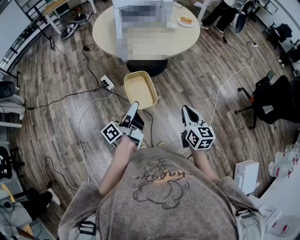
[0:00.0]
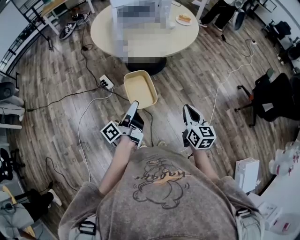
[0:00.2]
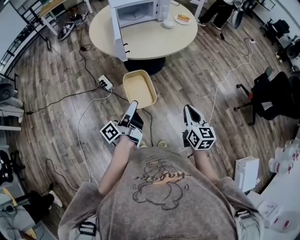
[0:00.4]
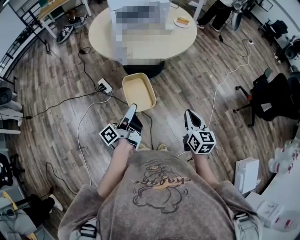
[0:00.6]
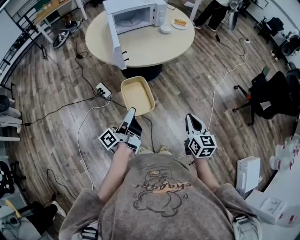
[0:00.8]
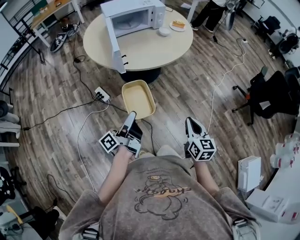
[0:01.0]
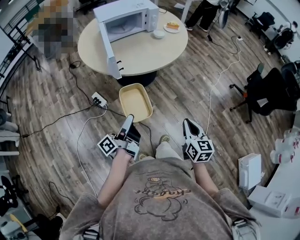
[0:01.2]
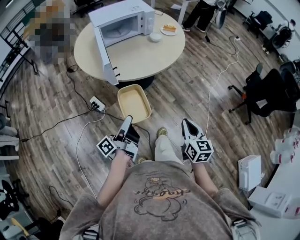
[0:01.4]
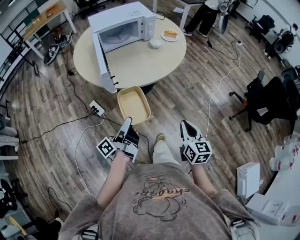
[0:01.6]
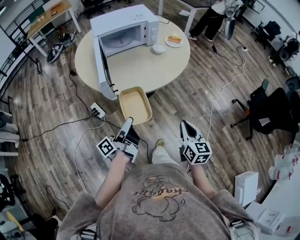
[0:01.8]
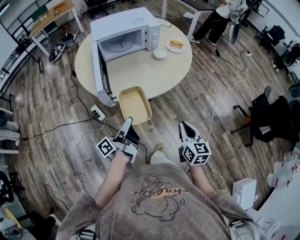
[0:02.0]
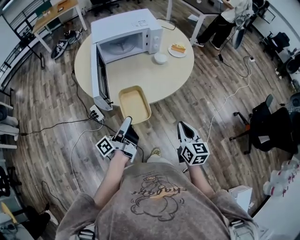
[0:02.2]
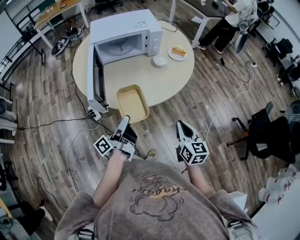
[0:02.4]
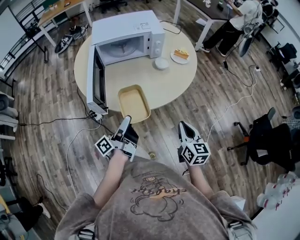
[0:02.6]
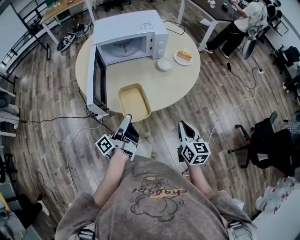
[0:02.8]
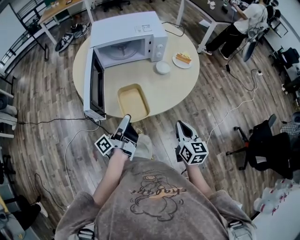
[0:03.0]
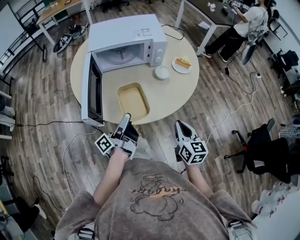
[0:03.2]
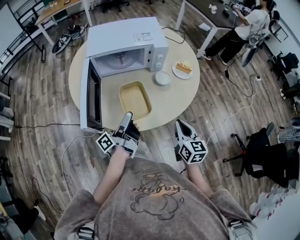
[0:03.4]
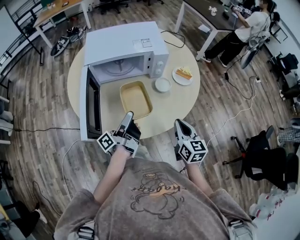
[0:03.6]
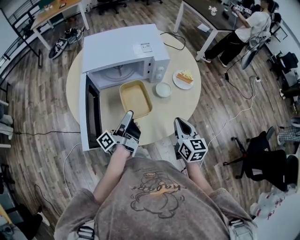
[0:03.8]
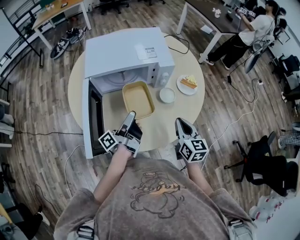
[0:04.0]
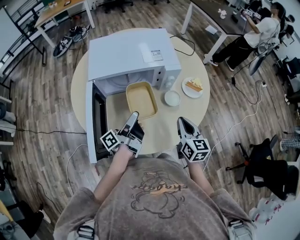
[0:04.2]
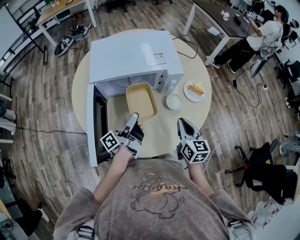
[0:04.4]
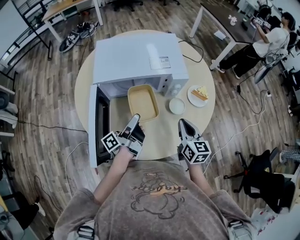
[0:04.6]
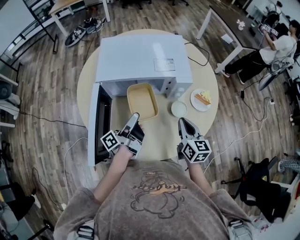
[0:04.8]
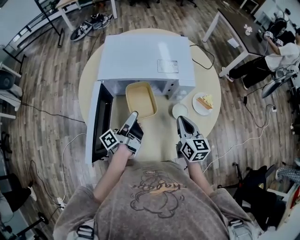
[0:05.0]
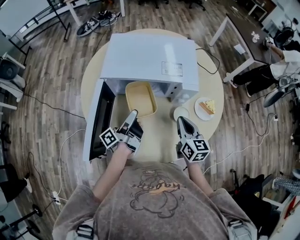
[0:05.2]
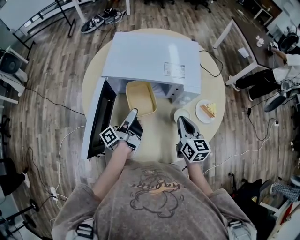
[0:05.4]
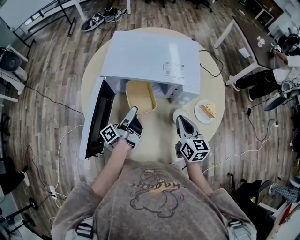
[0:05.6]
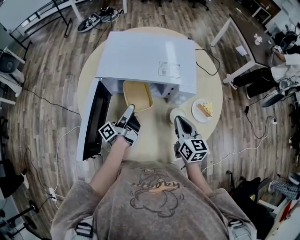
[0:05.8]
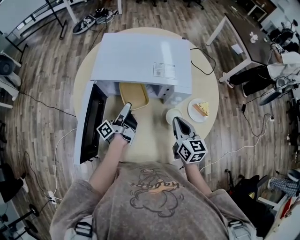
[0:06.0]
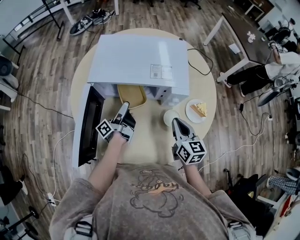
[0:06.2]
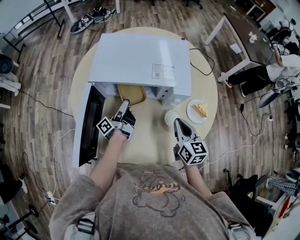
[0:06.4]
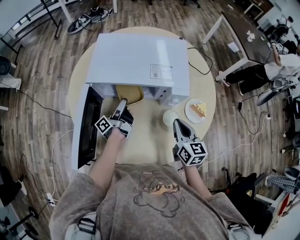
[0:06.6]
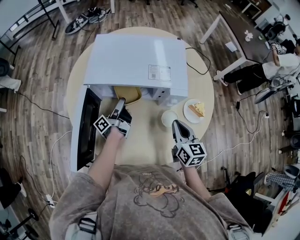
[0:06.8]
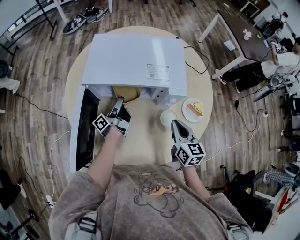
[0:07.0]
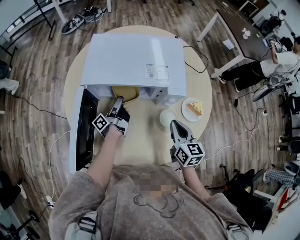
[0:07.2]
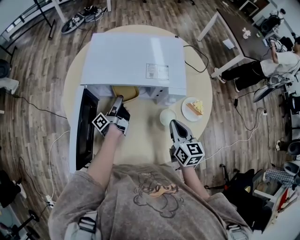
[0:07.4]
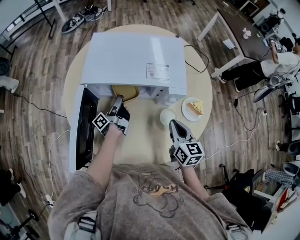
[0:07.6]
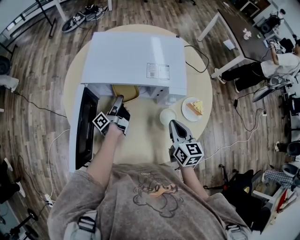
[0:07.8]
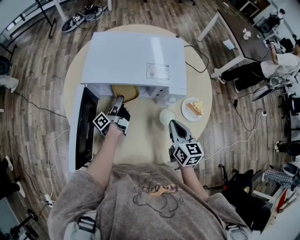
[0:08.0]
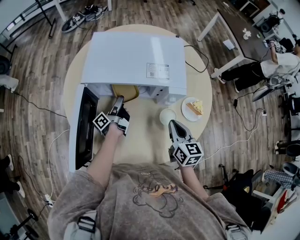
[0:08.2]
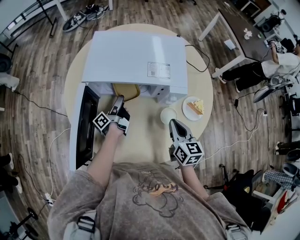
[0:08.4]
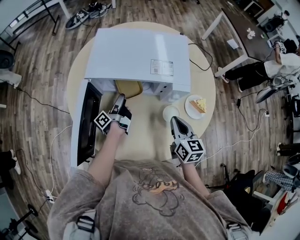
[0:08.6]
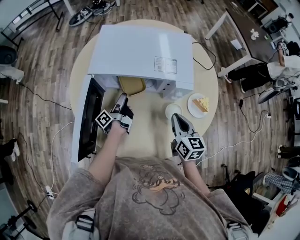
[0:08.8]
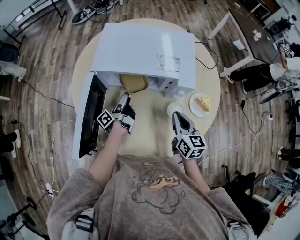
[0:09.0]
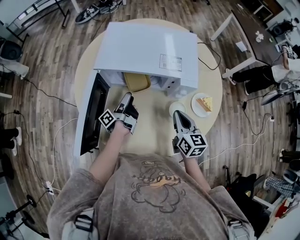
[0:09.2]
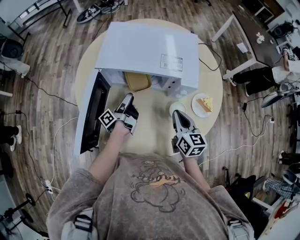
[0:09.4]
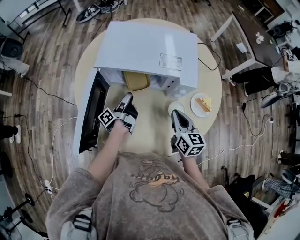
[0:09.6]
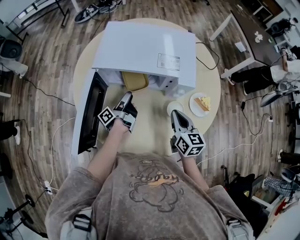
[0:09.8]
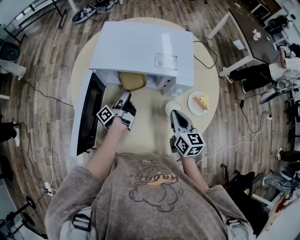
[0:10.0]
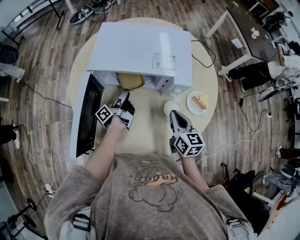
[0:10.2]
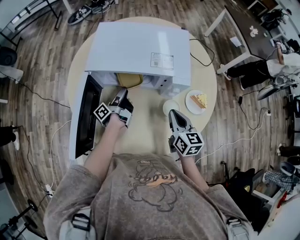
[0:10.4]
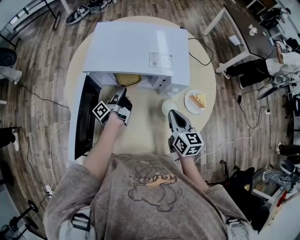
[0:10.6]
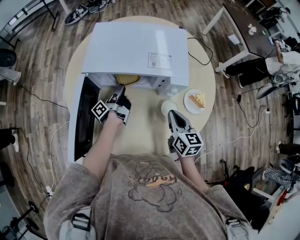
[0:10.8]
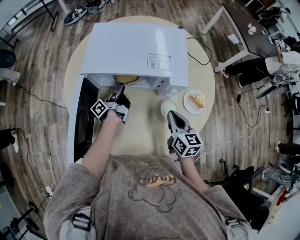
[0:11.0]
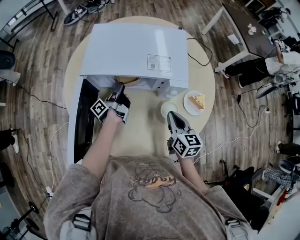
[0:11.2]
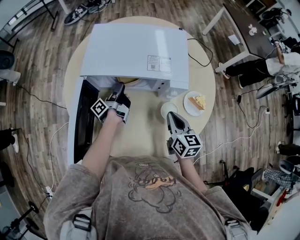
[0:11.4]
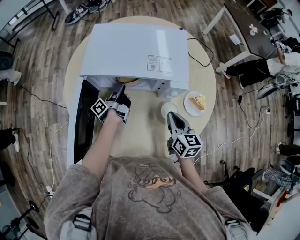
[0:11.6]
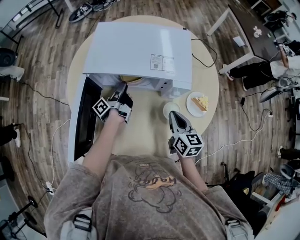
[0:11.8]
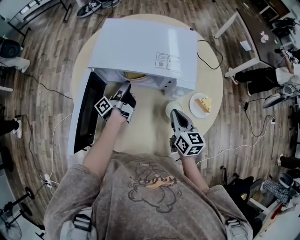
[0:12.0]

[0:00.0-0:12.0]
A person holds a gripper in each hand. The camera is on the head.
0:00.0 to 0:01.6: The right gripper ends up some 10 cm from where it was.
0:01.6 to 0:03.0: The right gripper moves approximately 25 cm.
0:03.0 to 0:04.4: The right gripper changes place by about 25 cm.
0:04.4 to 0:06.0: The right gripper shifts by about 10 cm.

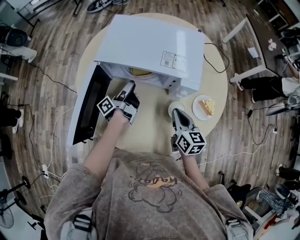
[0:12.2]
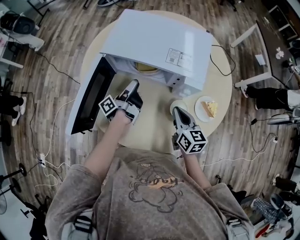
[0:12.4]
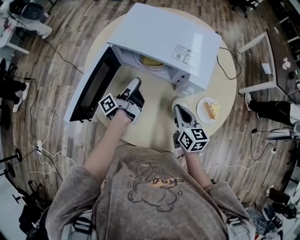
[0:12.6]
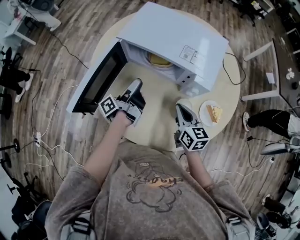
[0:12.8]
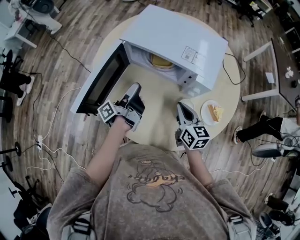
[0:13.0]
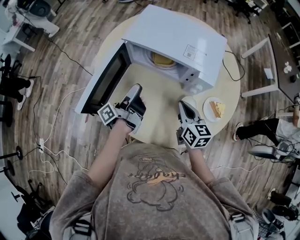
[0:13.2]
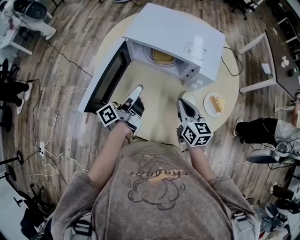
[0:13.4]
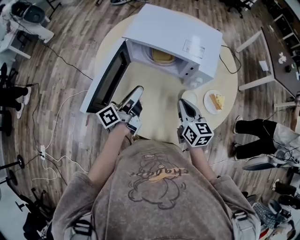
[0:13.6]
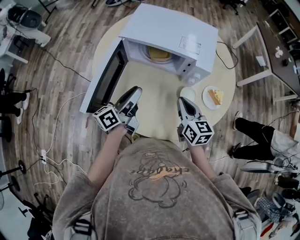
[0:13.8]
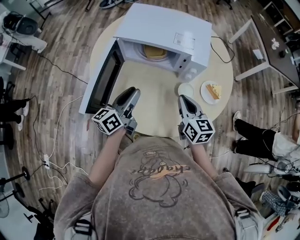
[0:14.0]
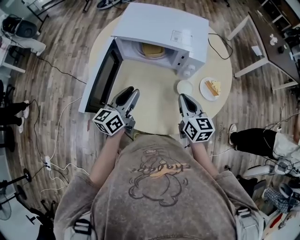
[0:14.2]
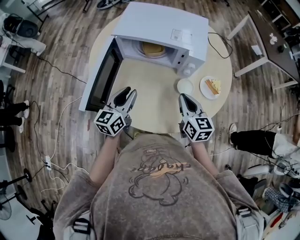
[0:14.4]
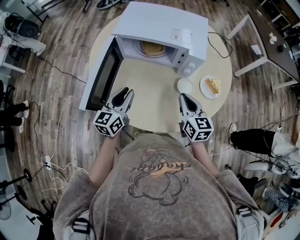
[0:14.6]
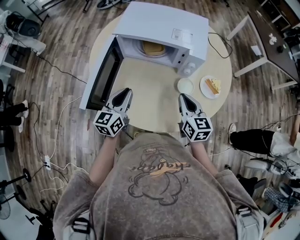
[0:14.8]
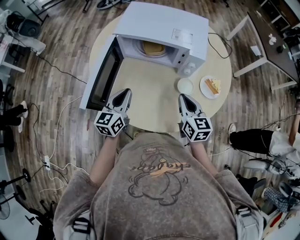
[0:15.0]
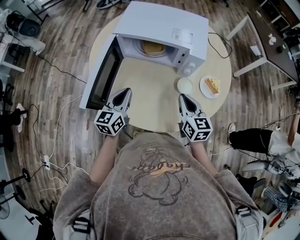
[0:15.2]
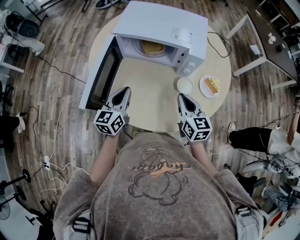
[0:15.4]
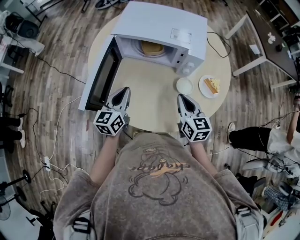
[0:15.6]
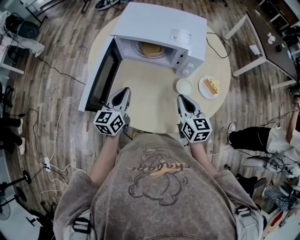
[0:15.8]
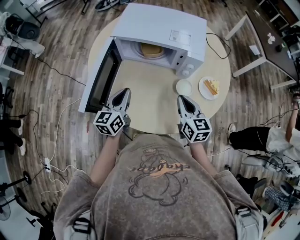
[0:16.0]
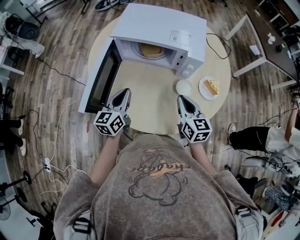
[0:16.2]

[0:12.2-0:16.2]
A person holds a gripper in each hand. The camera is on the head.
0:12.2 to 0:13.6: The right gripper changes place by about 5 cm.

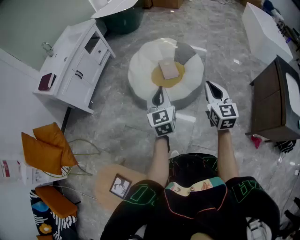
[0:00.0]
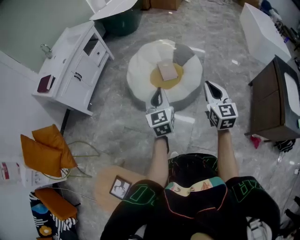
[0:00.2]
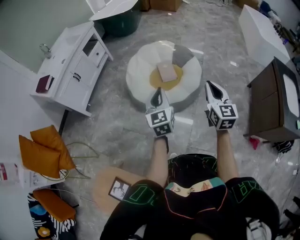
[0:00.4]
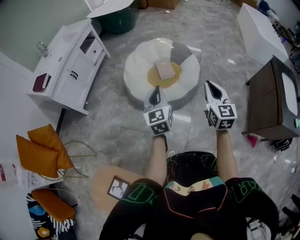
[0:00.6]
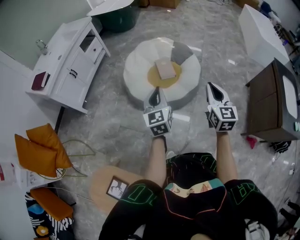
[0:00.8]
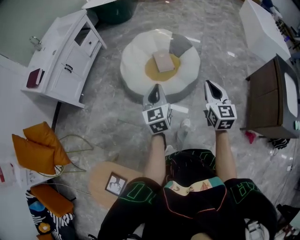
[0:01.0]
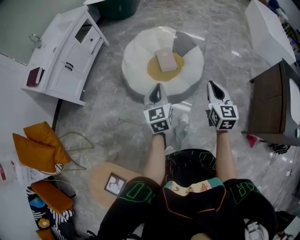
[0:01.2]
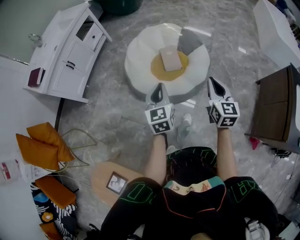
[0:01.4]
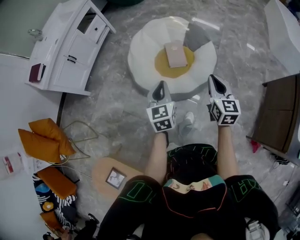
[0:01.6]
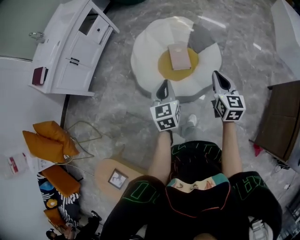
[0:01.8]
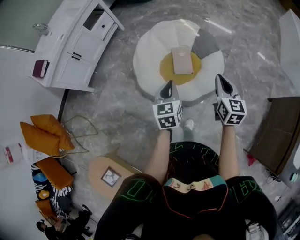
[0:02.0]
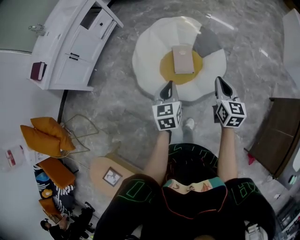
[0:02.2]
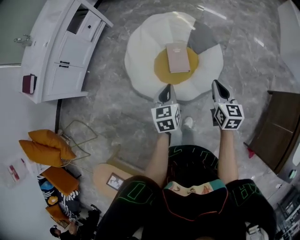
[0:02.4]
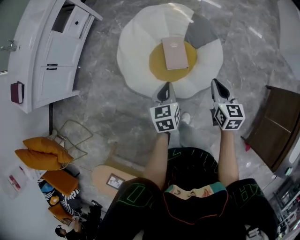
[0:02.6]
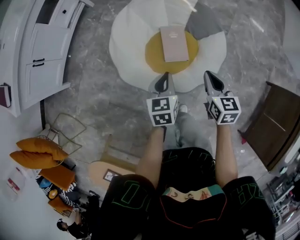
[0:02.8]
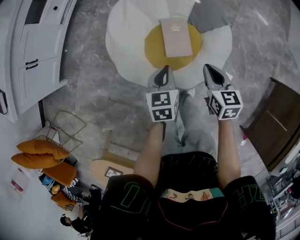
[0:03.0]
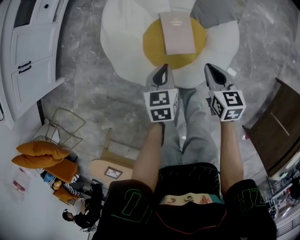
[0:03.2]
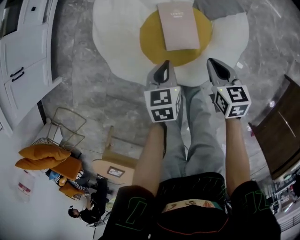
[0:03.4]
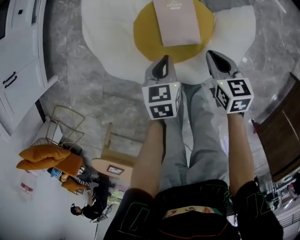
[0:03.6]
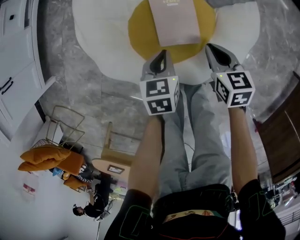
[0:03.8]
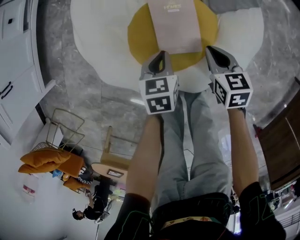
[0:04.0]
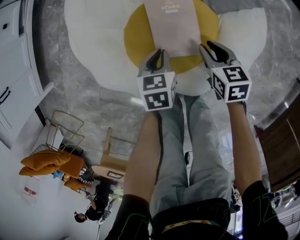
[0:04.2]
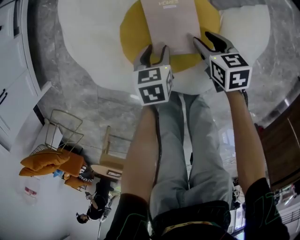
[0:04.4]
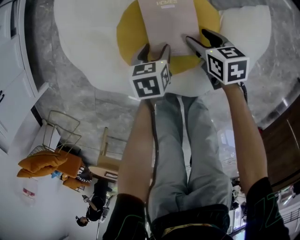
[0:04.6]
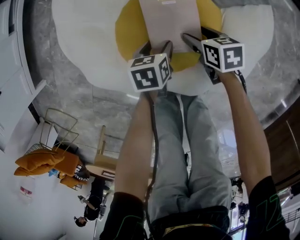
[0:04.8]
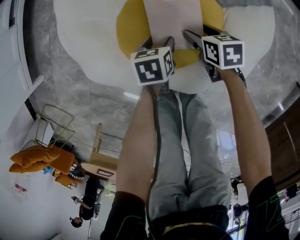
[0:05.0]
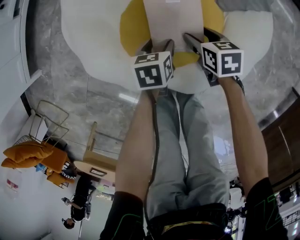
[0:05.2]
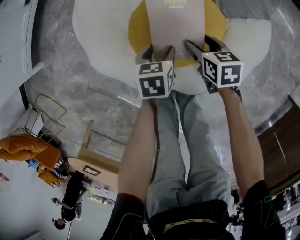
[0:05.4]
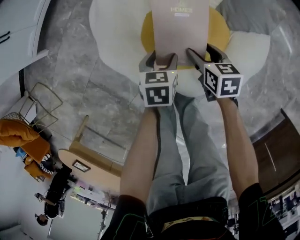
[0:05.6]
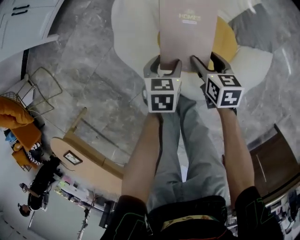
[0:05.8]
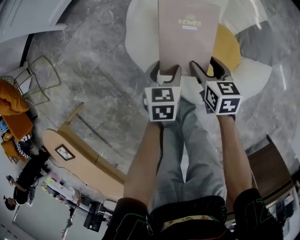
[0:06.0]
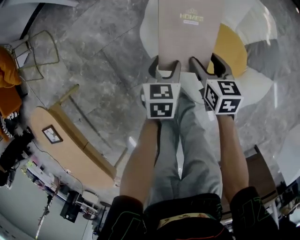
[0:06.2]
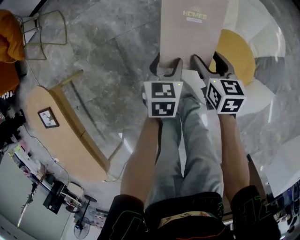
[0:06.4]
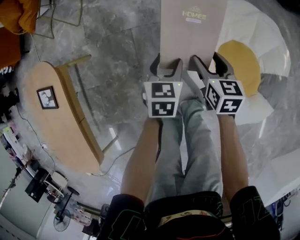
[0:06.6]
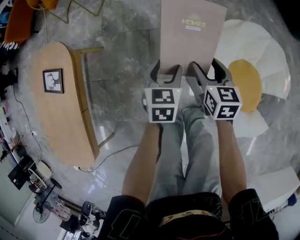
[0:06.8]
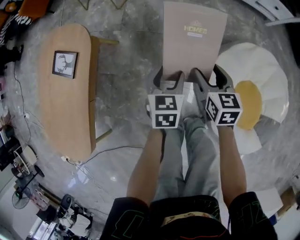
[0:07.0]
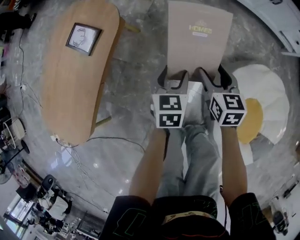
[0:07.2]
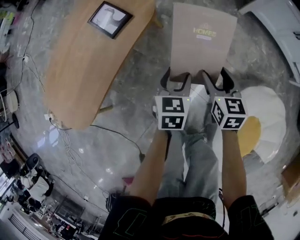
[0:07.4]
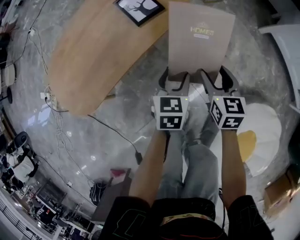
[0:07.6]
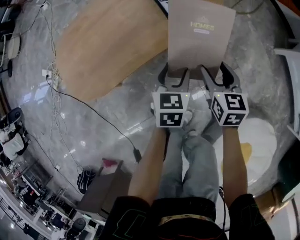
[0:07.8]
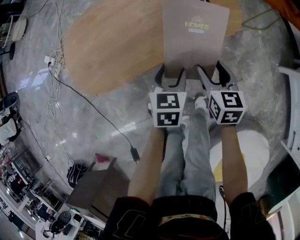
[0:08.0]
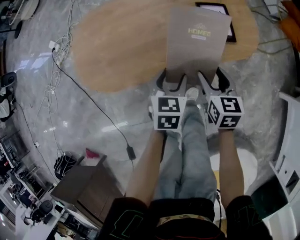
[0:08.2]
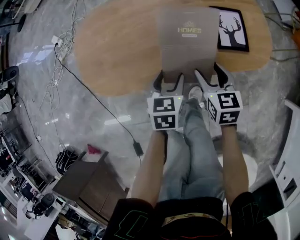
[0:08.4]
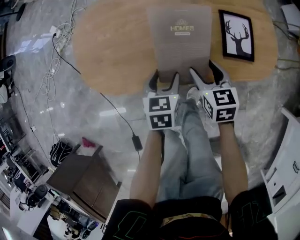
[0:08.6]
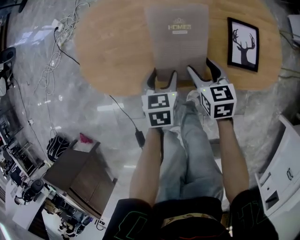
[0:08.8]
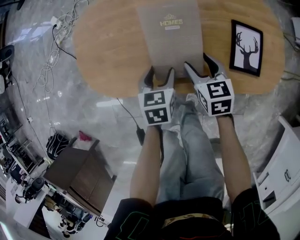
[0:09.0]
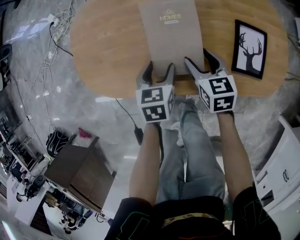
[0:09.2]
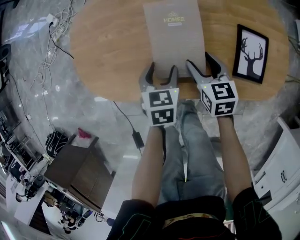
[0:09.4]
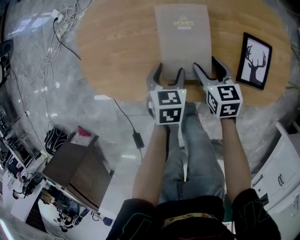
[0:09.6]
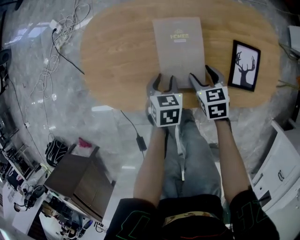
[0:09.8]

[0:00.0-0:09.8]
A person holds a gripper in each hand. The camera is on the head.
0:00.0 to 0:01.4: Both grippers move forward and downward, some 15 cm.
0:01.4 to 0:02.8: The grippers both shift forward and downward by some 35 cm. The right gripper changes its angle by roughly 20 degrees, while the left gripper changes its angle by roughly 20 degrees.
0:02.8 to 0:04.2: The two grippers go some 35 cm downward. The right gripper opens up. Meanwhile the left gripper rotates about 20 degrees.
0:04.2 to 0:05.6: The left gripper goes approximately 5 cm to the left, and opens up. The right gripper travels to the left by about 10 cm, moves roughly 10 cm downward and comes back, and opens up.
0:05.6 to 0:07.0: The pair of grippers is taken about 60 cm. The right gripper rolls counterclockwise, seen from behind, by about 50 degrees, while the left gripper swivels about 60 degrees.
0:07.0 to 0:08.4: The pair of grippers is taken approximately 60 cm. The left gripper changes its angle by some 70 degrees. Meanwhile the right gripper changes its angle by roughly 70 degrees.
0:08.4 to 0:09.8: The left gripper moves forward and to the left, roughly 15 cm. The right gripper shifts about 15 cm forward and downward, and rotates approximately 20 degrees.
